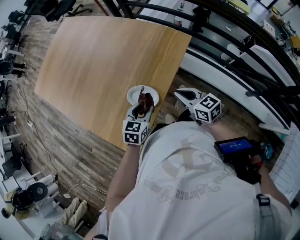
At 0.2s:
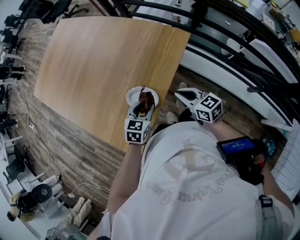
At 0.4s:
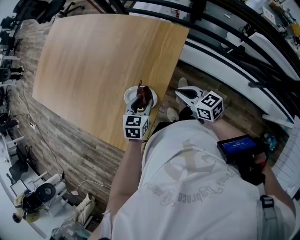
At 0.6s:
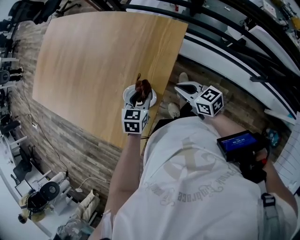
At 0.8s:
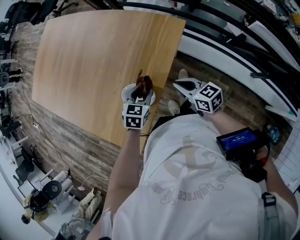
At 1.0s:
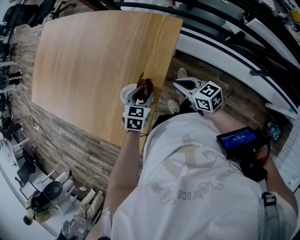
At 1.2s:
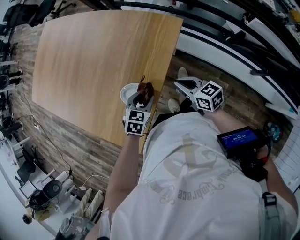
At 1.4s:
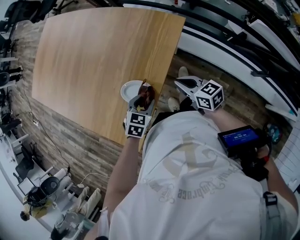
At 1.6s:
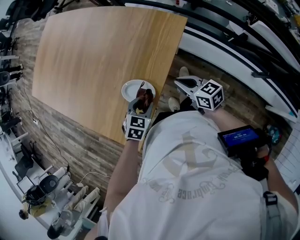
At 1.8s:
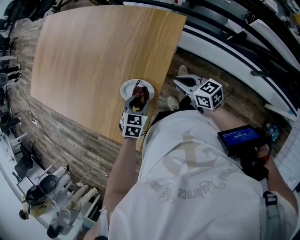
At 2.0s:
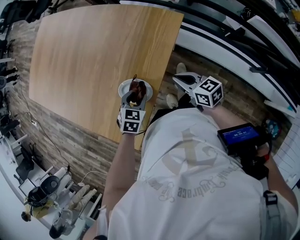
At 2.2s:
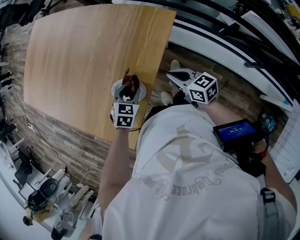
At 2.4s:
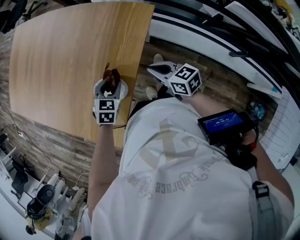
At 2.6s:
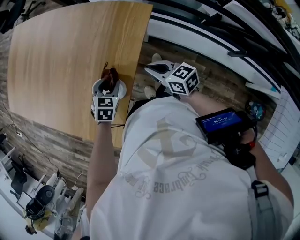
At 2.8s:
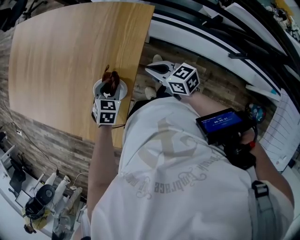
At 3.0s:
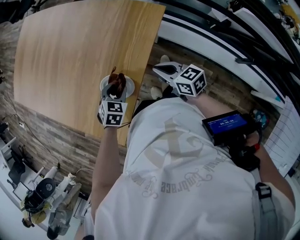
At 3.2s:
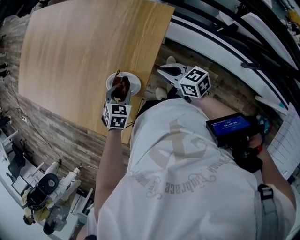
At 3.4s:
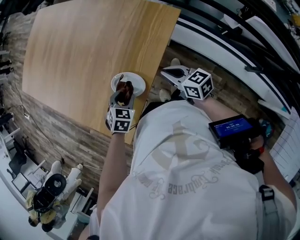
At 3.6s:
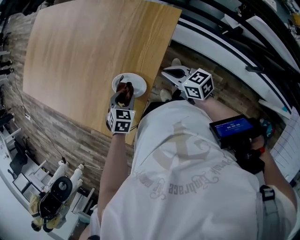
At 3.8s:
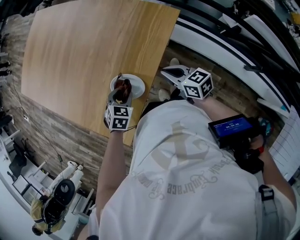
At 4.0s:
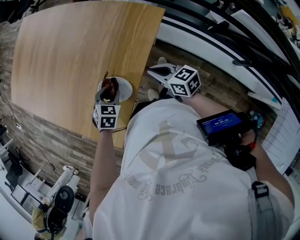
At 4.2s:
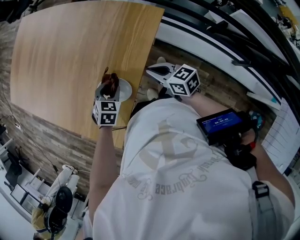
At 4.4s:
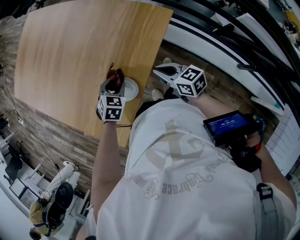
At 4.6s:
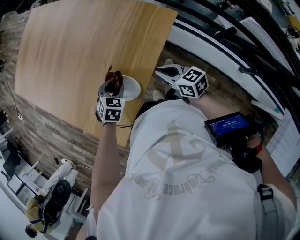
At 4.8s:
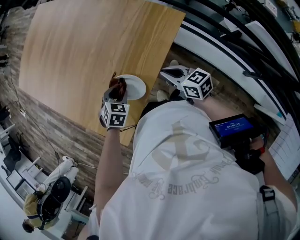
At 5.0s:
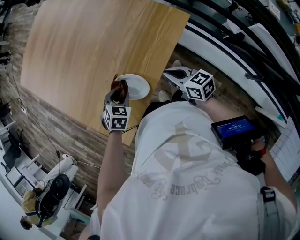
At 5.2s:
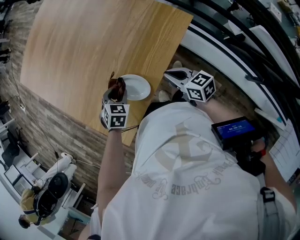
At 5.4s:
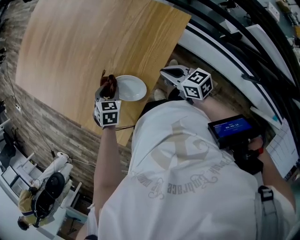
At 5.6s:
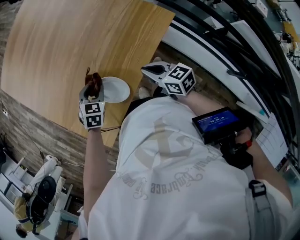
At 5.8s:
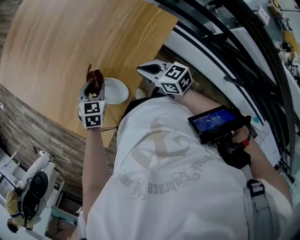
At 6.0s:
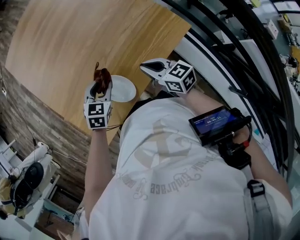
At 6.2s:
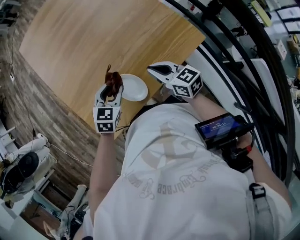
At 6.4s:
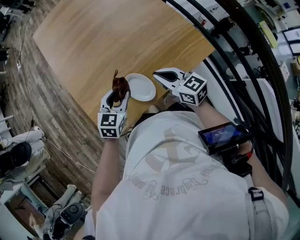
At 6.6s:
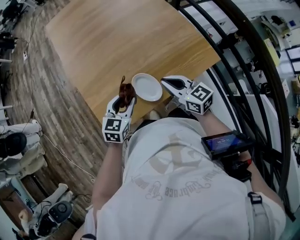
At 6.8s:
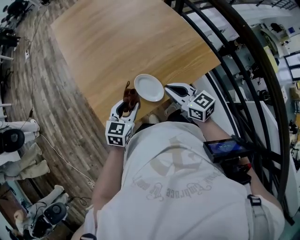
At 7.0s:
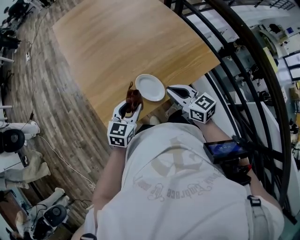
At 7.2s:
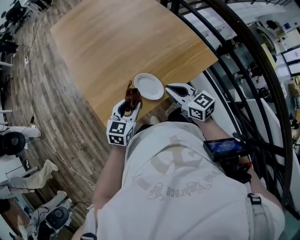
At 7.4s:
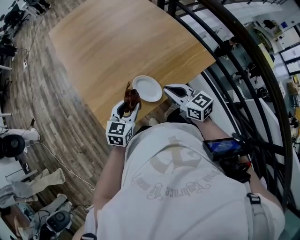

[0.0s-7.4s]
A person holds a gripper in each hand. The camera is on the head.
0.0s to 1.4s: The two grippers go some 5 cm downward.
1.4s to 3.0s: The left gripper ends up approximately 5 cm from where it was.
3.0s to 4.4s: The grippers make only small movements.
4.4s to 6.0s: The right gripper heads forward and to the left, covering some 10 cm, while the left gripper moves to the left, some 5 cm, and turns by roughly 30 degrees.
6.0s to 7.4s: The left gripper goes approximately 15 cm backward, upward and to the left, and swivels approximately 20 degrees. Meanwhile the right gripper shifts some 15 cm upward, backward and to the left.

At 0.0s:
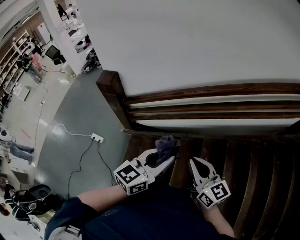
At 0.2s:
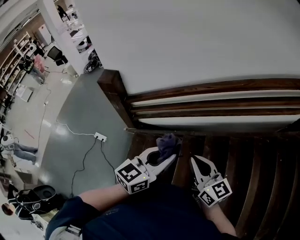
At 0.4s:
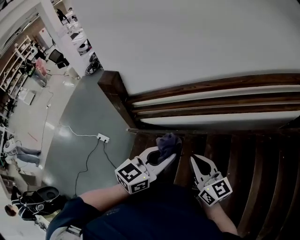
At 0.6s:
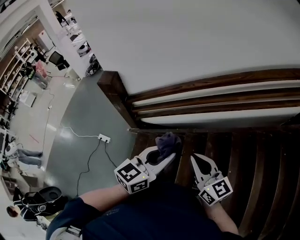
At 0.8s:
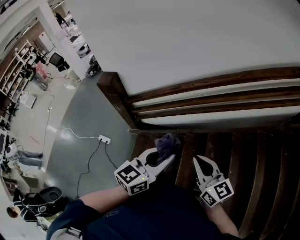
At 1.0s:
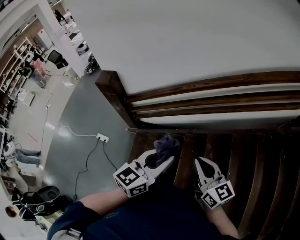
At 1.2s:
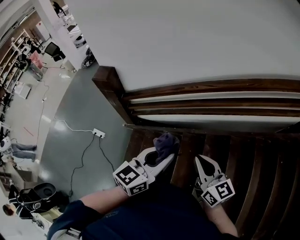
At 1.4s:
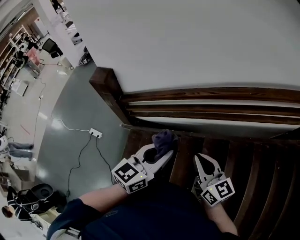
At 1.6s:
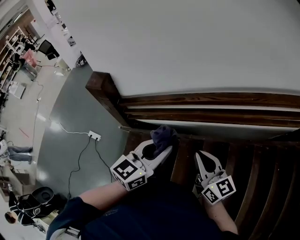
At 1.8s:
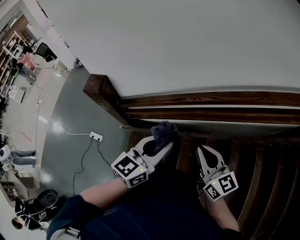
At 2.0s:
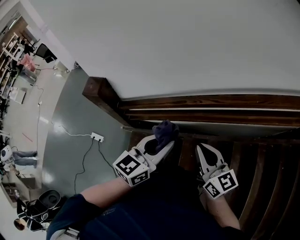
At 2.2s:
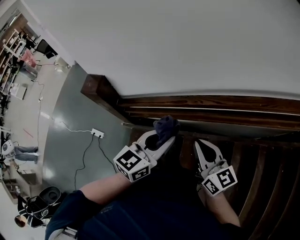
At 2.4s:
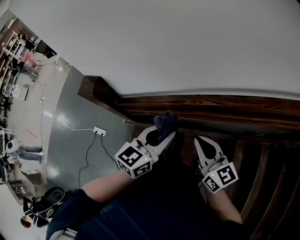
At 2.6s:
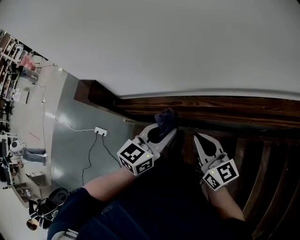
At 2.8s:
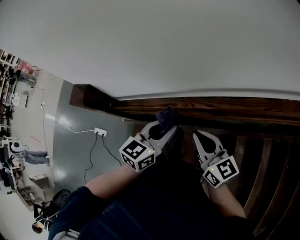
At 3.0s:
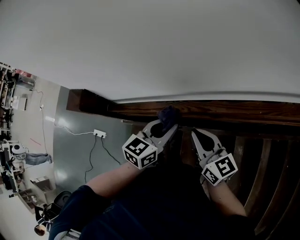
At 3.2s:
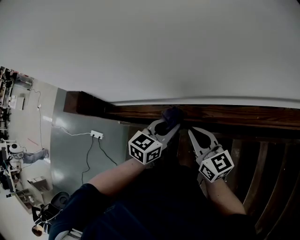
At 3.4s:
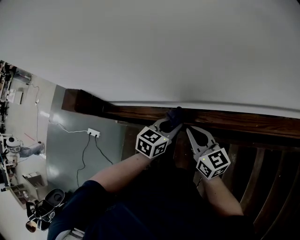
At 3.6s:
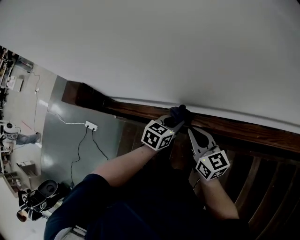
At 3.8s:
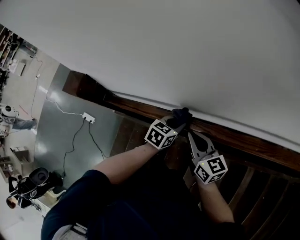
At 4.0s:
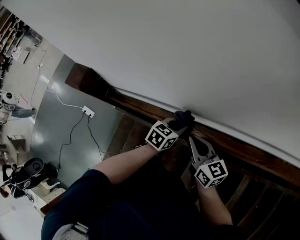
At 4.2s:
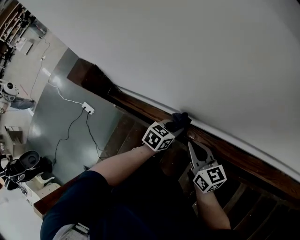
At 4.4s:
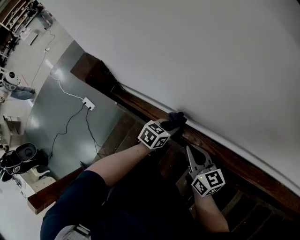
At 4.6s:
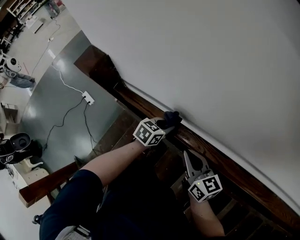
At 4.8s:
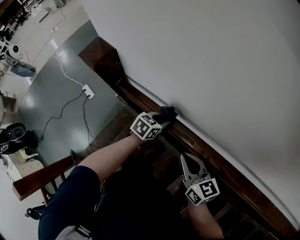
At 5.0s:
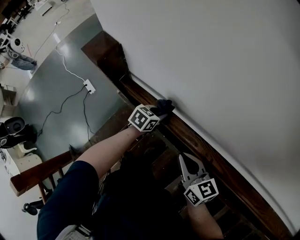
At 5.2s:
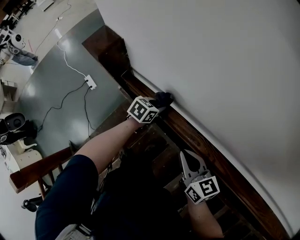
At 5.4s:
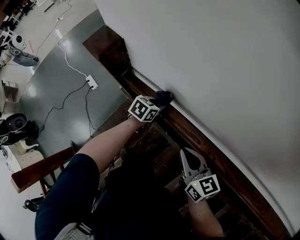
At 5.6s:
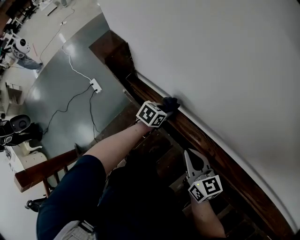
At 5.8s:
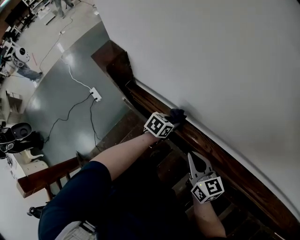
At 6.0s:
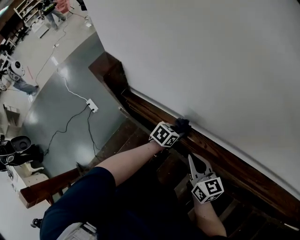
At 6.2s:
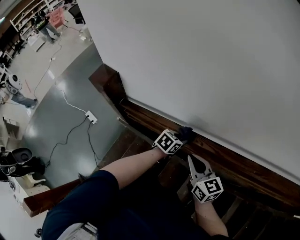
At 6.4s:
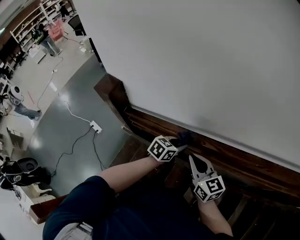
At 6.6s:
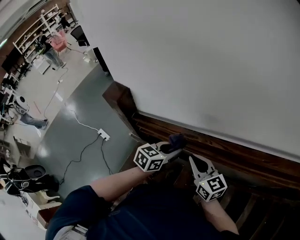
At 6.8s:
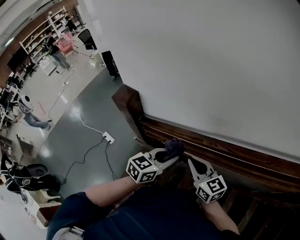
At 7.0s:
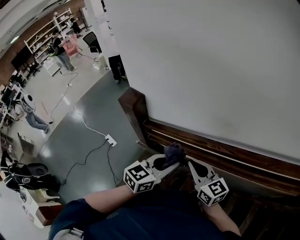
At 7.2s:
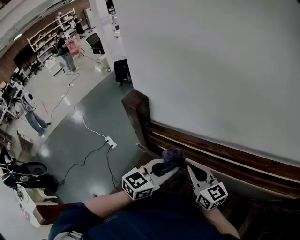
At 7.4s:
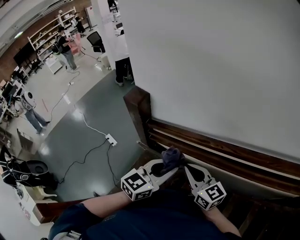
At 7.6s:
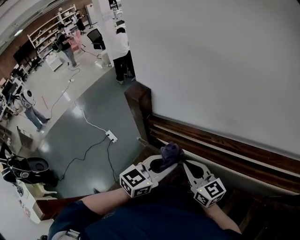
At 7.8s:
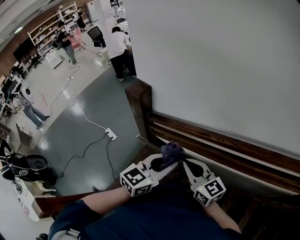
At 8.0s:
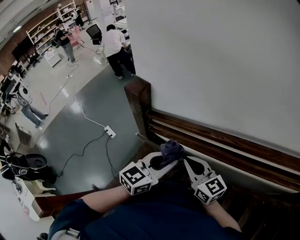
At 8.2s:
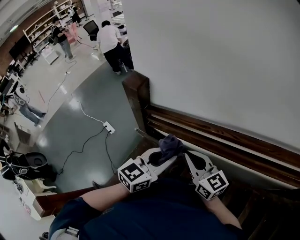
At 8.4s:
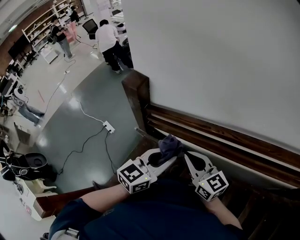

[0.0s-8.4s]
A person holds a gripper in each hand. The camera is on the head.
0.0s to 1.4s: Both grippers travel together forward, roughly 10 cm.
1.4s to 2.8s: Both grippers travel together forward, some 25 cm.
2.8s to 4.2s: The right gripper heads forward and downward, covering roughly 10 cm. Meanwhile the left gripper is displaced downward and forward by some 20 cm.
4.2s to 5.6s: The left gripper moves to the left and downward, some 20 cm; the right gripper moves to the left, some 10 cm.
5.6s to 7.0s: The left gripper shifts approximately 40 cm upward and backward, and turns by about 30 degrees; the right gripper shifts approximately 20 cm upward and backward.
7.0s to 8.4s: The left gripper shifts approximately 5 cm backward; the right gripper moves backward and to the left, roughly 10 cm.

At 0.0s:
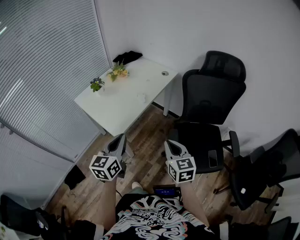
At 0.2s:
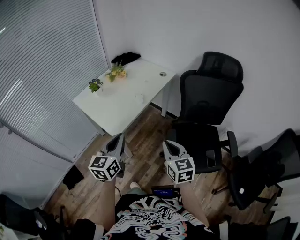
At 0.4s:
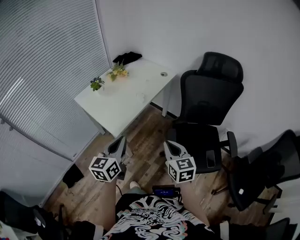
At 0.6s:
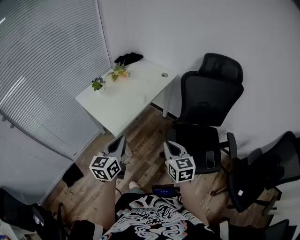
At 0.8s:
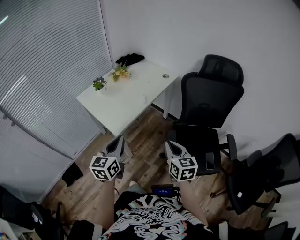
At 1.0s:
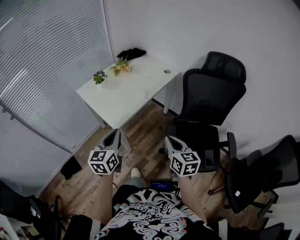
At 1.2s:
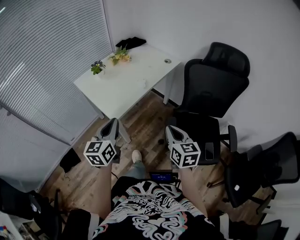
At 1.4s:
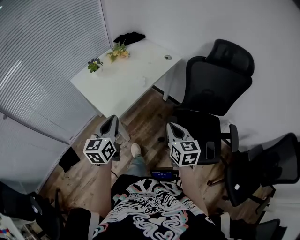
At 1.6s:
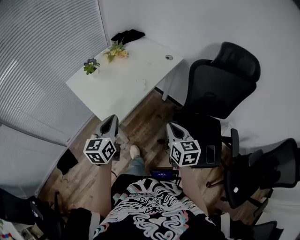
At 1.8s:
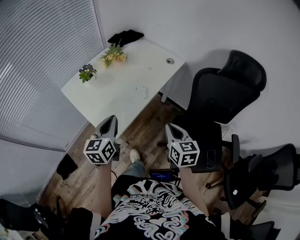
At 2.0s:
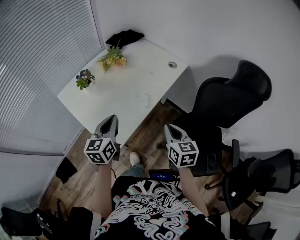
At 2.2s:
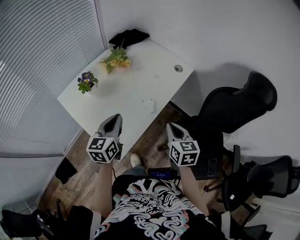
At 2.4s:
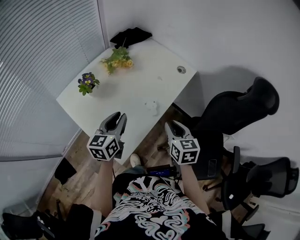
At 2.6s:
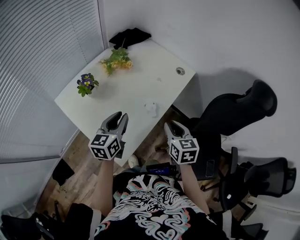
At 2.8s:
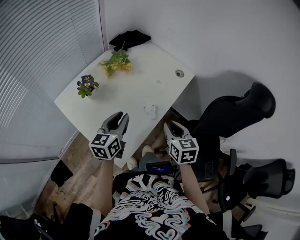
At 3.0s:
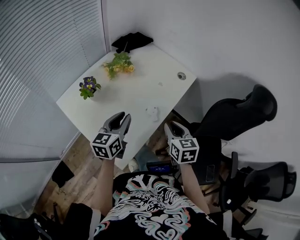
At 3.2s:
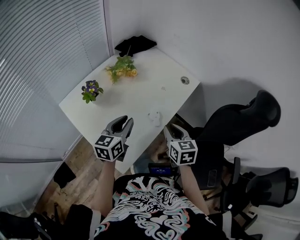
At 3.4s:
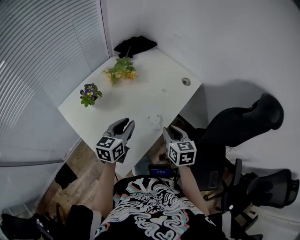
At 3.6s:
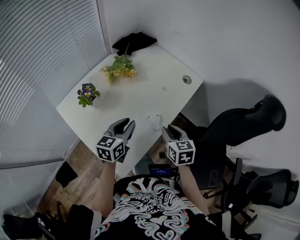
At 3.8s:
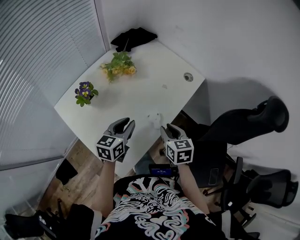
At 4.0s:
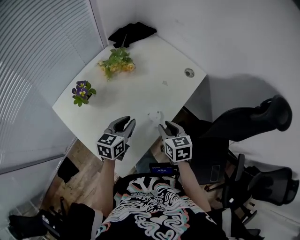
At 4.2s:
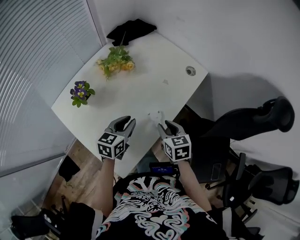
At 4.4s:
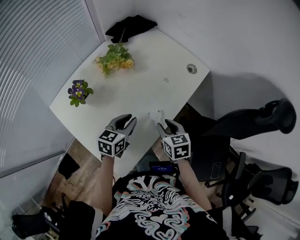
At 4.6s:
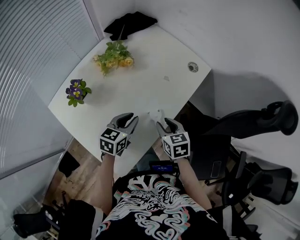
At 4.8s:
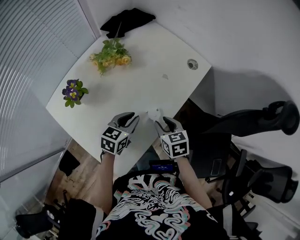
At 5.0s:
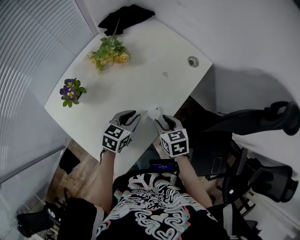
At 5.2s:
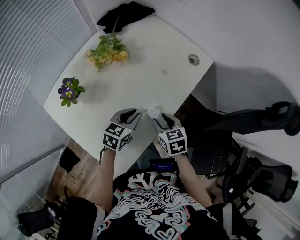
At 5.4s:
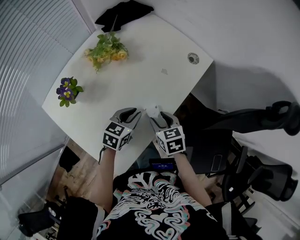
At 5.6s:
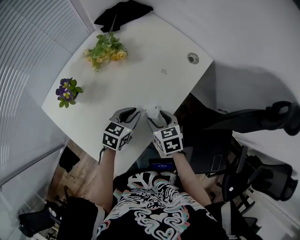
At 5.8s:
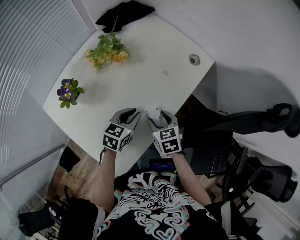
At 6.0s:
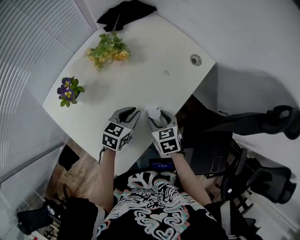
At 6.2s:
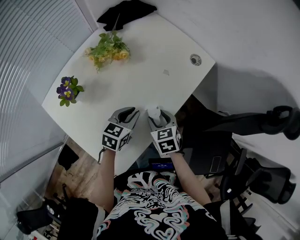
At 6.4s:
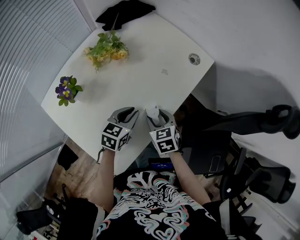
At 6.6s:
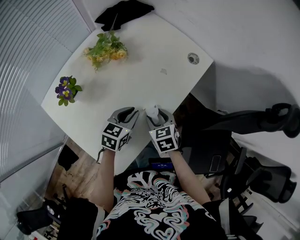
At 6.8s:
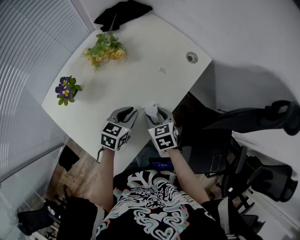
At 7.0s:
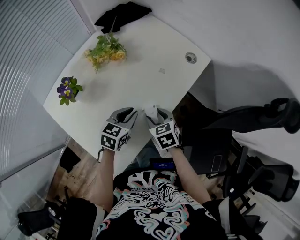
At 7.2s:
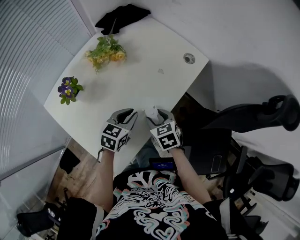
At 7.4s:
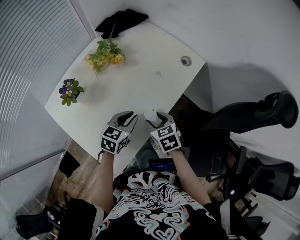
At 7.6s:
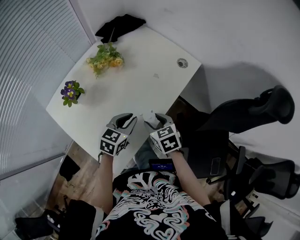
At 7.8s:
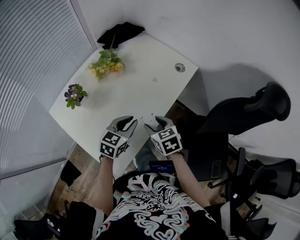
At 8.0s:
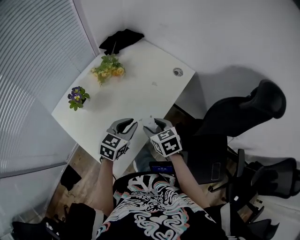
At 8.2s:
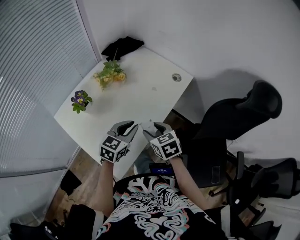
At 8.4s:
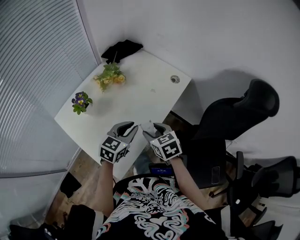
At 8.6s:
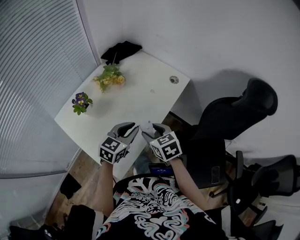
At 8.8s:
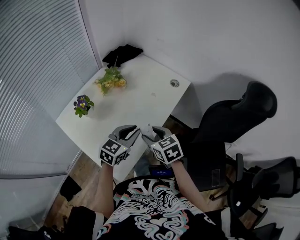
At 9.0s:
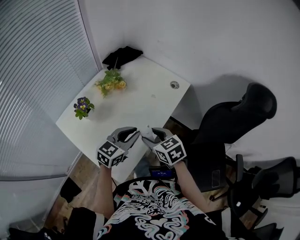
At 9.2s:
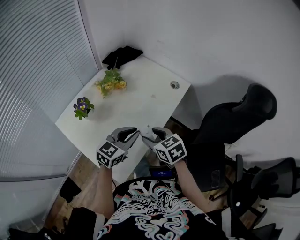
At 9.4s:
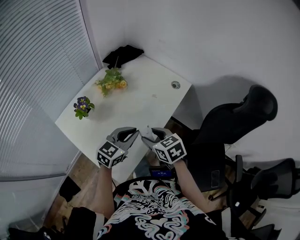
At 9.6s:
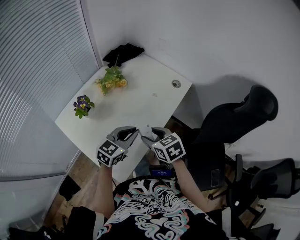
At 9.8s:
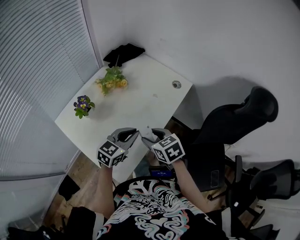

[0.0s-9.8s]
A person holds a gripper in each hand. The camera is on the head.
0.0s to 1.4s: The grippers move only a little.
1.4s to 2.8s: Both grippers travel together forward, roughly 30 cm. The left gripper opens.
2.8s to 4.2s: Both grippers travel together downward and forward, about 10 cm.
4.2s to 5.6s: The two grippers go roughly 5 cm downward. The right gripper opens up.
5.6s to 7.0s: The grippers make only small movements.
7.0s to 8.4s: Both grippers travel together upward and backward, approximately 15 cm.
8.4s to 9.8s: The grippers move only a little.
